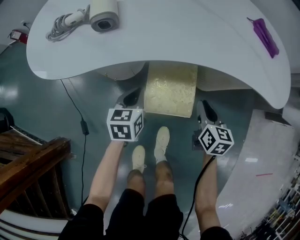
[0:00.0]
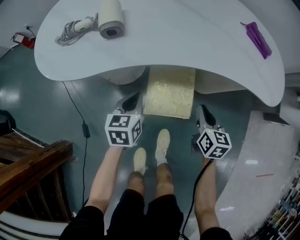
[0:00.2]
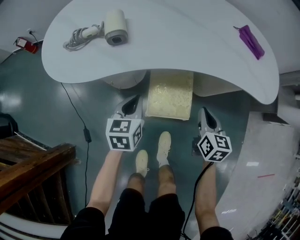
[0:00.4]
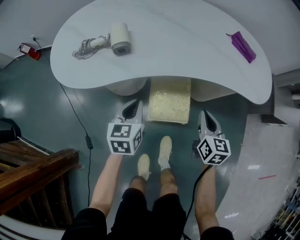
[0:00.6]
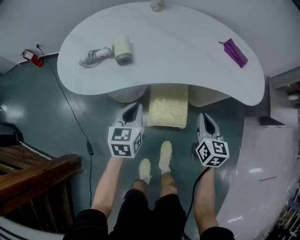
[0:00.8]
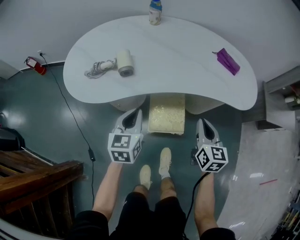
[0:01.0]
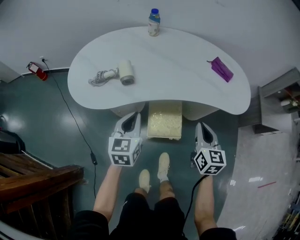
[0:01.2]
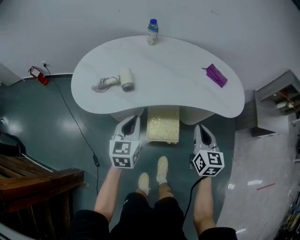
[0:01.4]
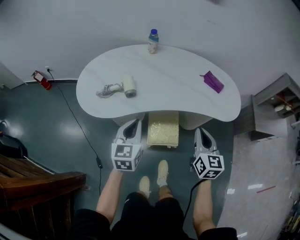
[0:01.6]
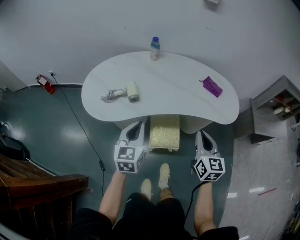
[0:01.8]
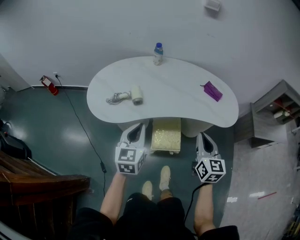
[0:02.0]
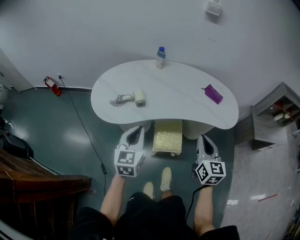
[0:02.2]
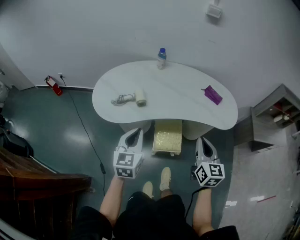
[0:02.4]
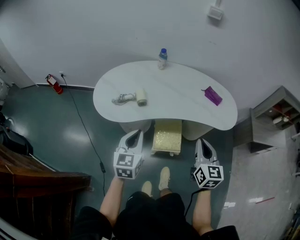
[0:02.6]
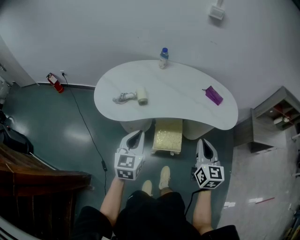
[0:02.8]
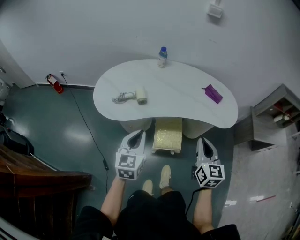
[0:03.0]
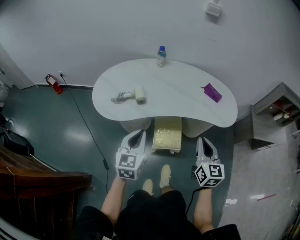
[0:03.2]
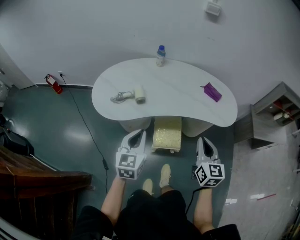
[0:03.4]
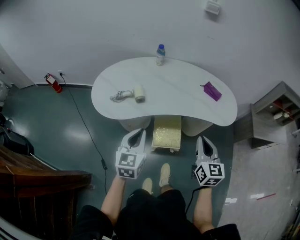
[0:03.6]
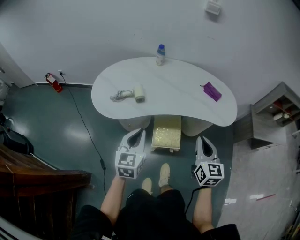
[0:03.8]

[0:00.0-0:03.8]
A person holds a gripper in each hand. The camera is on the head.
0:00.0 to 0:01.2: Both grippers travel together upward, about 30 cm.
0:01.2 to 0:02.6: The two grippers go about 20 cm upward and backward.
0:02.6 to 0:03.8: The grippers make only small movements.

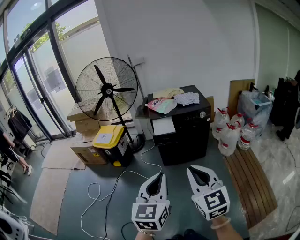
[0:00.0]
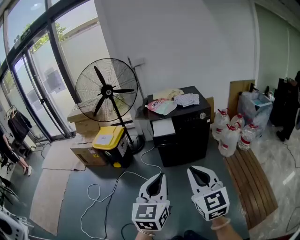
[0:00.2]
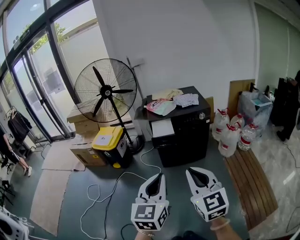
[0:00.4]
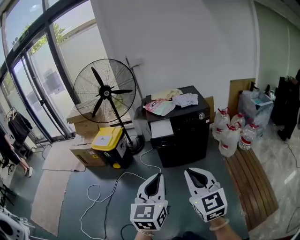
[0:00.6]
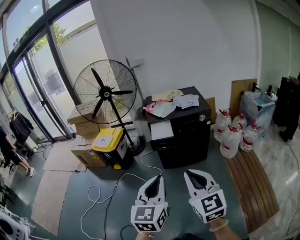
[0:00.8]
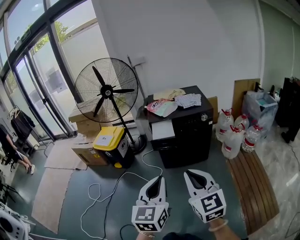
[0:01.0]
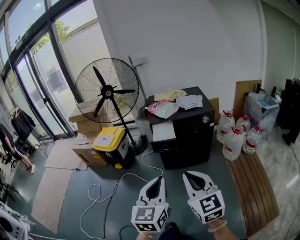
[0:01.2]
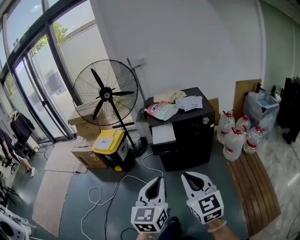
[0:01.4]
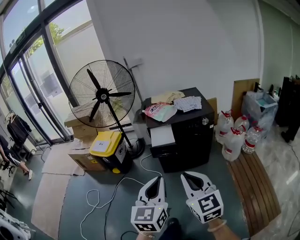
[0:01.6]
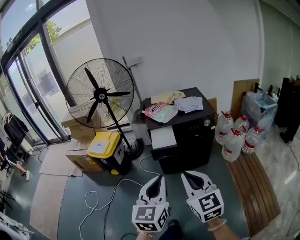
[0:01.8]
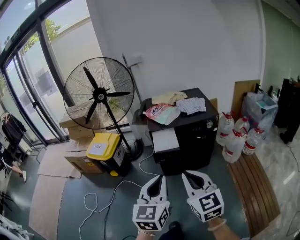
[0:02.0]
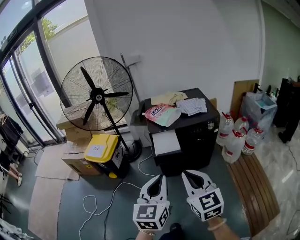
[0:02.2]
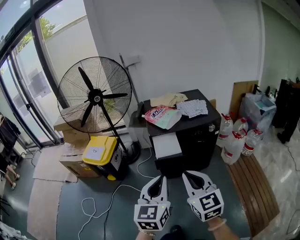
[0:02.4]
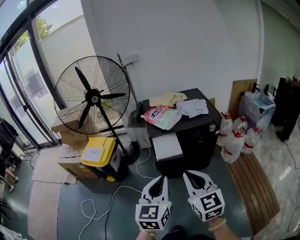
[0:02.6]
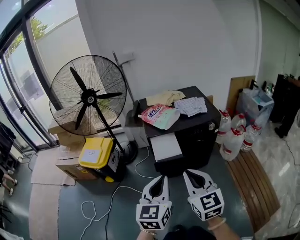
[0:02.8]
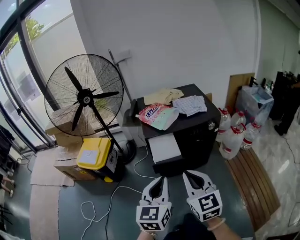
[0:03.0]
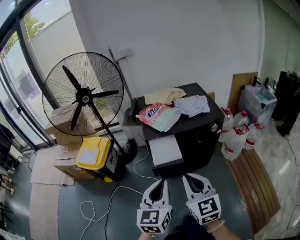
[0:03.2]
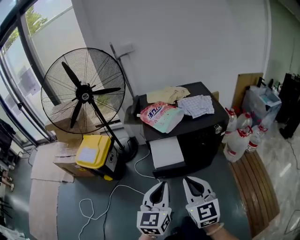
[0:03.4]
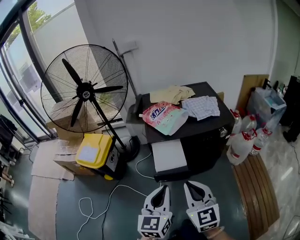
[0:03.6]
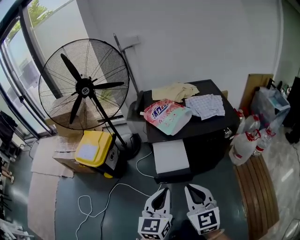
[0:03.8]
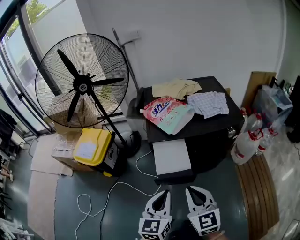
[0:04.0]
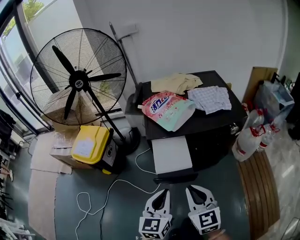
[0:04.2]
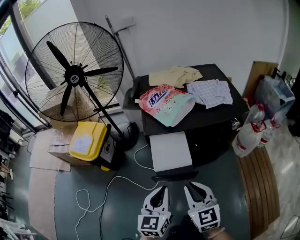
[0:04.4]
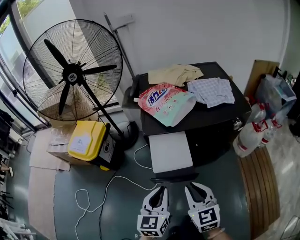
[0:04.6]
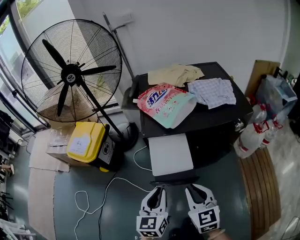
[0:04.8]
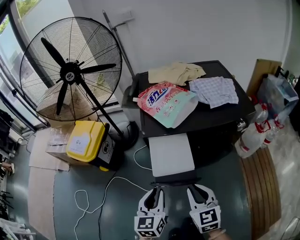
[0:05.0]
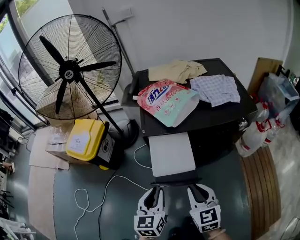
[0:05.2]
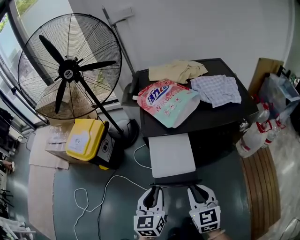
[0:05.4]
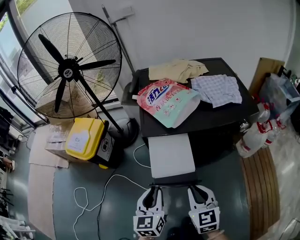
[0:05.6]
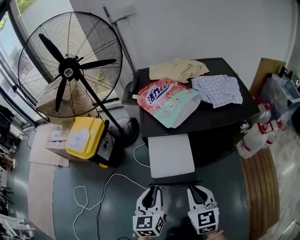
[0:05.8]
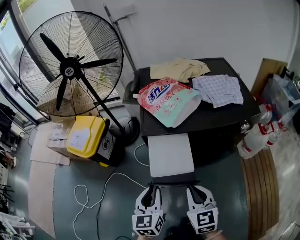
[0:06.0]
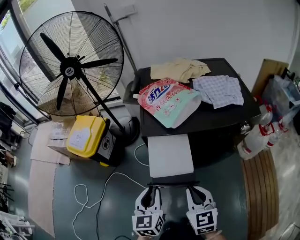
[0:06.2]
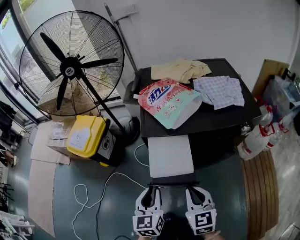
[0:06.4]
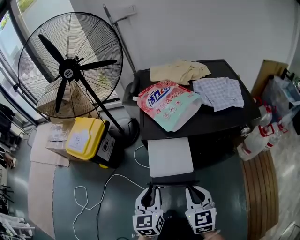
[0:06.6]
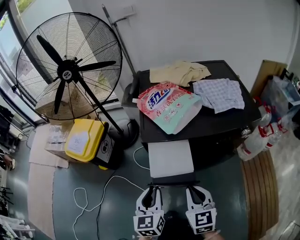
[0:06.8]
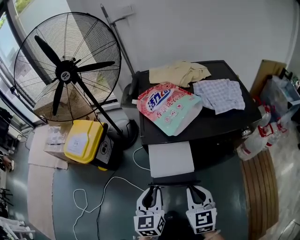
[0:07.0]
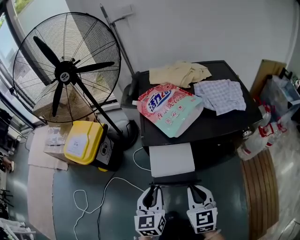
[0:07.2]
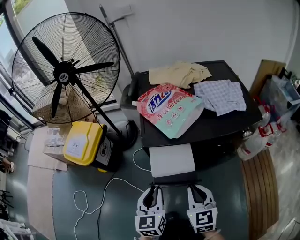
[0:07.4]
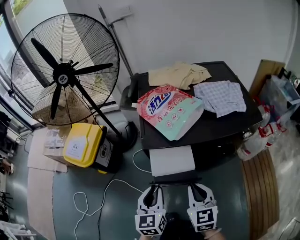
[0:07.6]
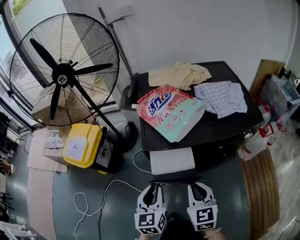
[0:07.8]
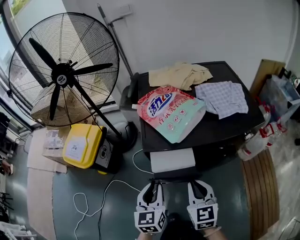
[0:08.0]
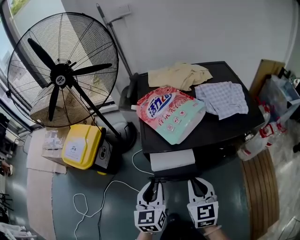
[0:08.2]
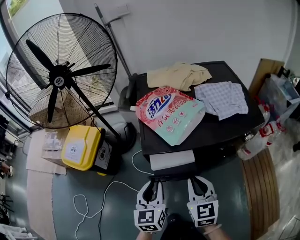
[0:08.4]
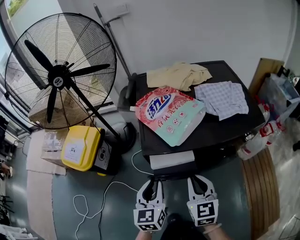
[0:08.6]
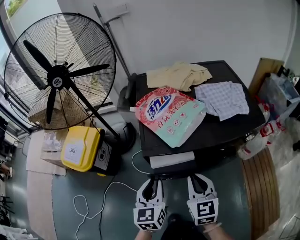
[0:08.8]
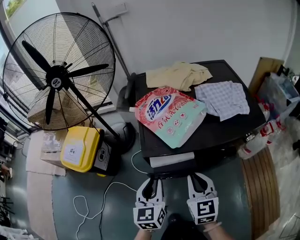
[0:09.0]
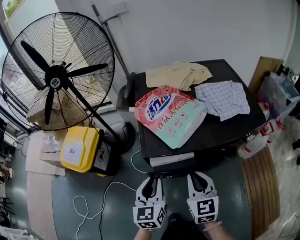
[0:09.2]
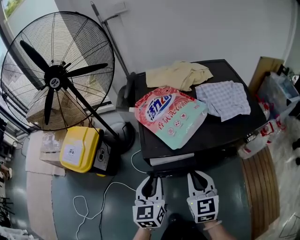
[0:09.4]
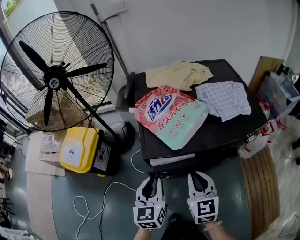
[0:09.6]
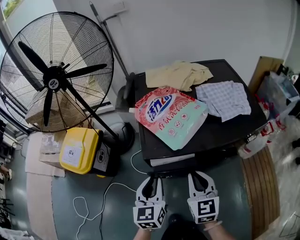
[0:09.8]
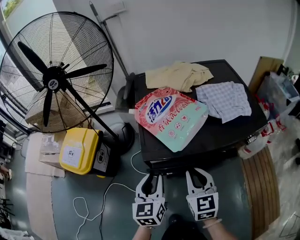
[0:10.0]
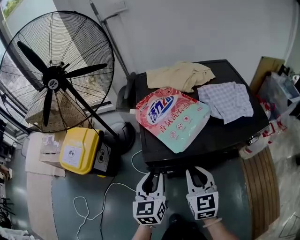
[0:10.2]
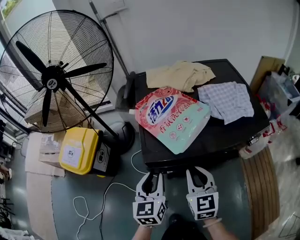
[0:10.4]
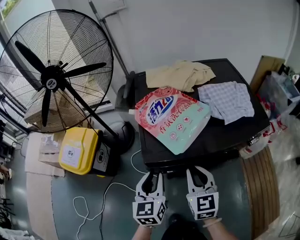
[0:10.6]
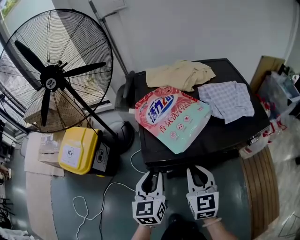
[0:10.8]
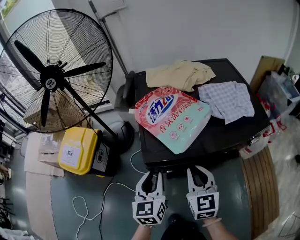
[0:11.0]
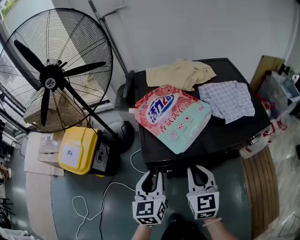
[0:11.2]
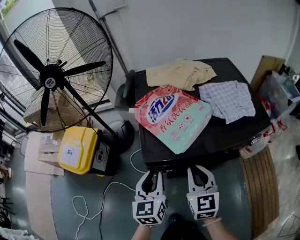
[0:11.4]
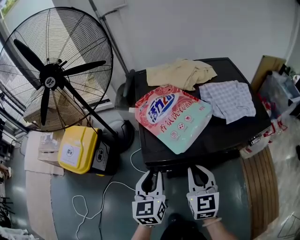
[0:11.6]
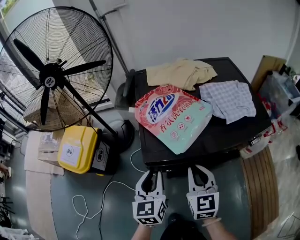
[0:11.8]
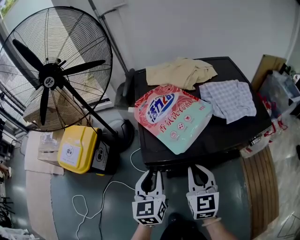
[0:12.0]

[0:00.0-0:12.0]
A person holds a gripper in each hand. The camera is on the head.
0:00.0 to 0:01.6: Both grippers travel together forward, about 10 cm.
0:01.6 to 0:03.0: The grippers both shift forward by approximately 20 cm.
0:03.0 to 0:04.4: Both grippers move downward and forward, some 25 cm.
0:04.4 to 0:06.0: Both grippers move downward, roughly 5 cm.
0:06.0 to 0:07.6: The grippers both shift forward by approximately 5 cm.
0:07.6 to 0:09.0: The two grippers go roughly 5 cm forward.
0:09.0 to 0:10.4: The grippers make only small movements.
0:10.4 to 0:12.0: Both grippers stay about where they are.

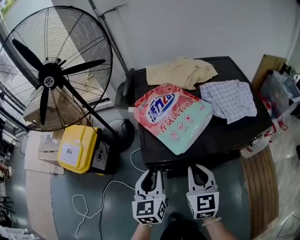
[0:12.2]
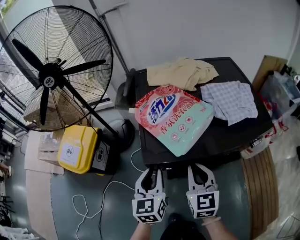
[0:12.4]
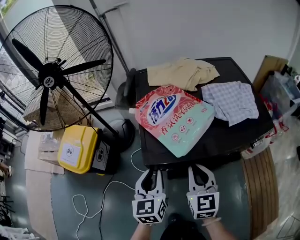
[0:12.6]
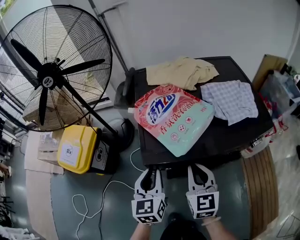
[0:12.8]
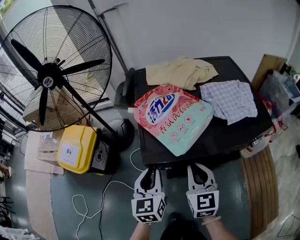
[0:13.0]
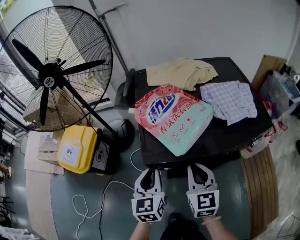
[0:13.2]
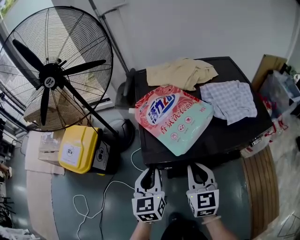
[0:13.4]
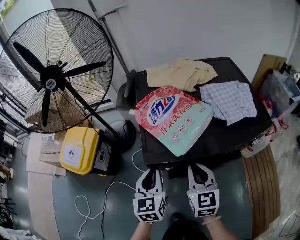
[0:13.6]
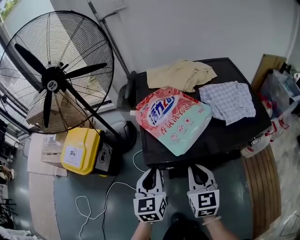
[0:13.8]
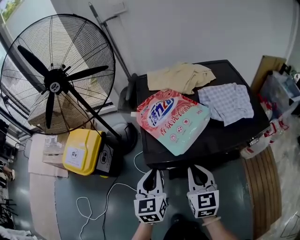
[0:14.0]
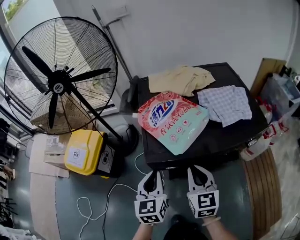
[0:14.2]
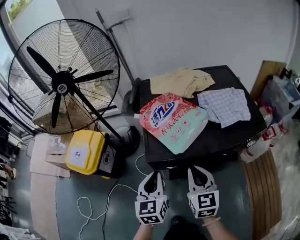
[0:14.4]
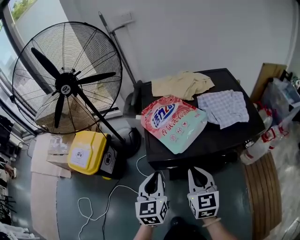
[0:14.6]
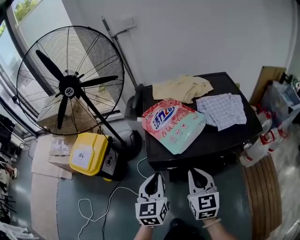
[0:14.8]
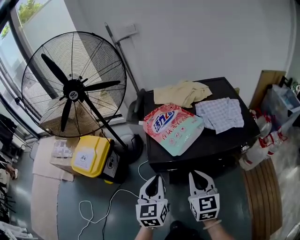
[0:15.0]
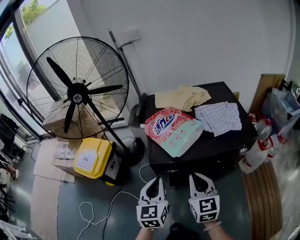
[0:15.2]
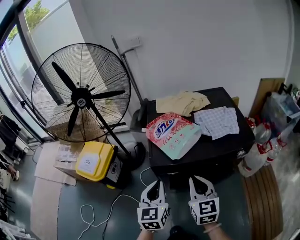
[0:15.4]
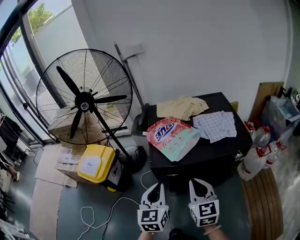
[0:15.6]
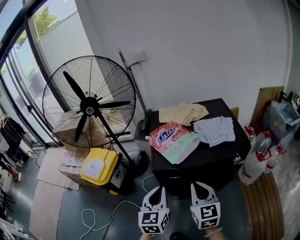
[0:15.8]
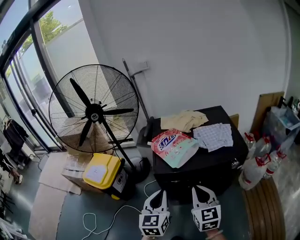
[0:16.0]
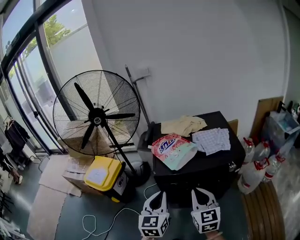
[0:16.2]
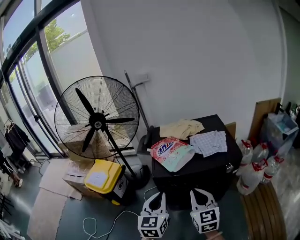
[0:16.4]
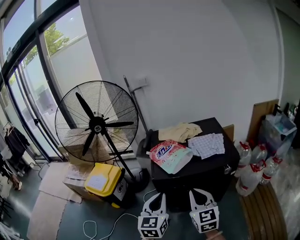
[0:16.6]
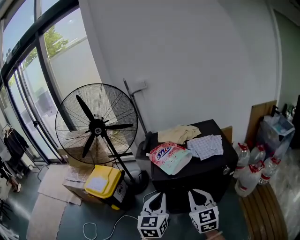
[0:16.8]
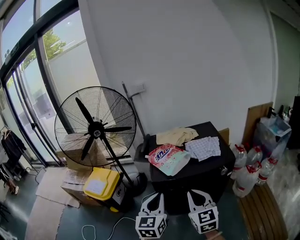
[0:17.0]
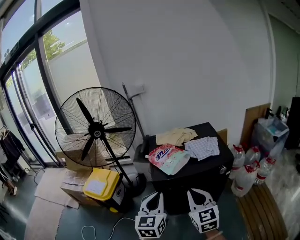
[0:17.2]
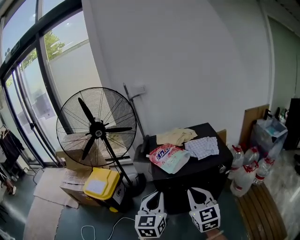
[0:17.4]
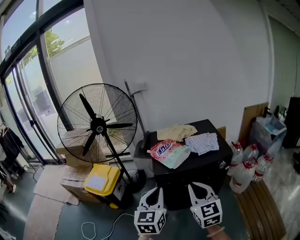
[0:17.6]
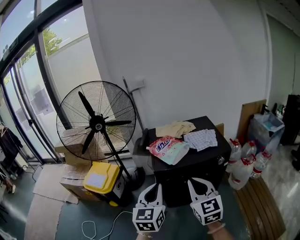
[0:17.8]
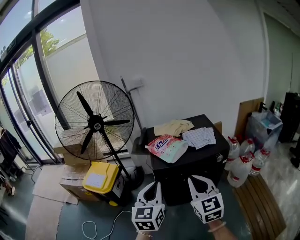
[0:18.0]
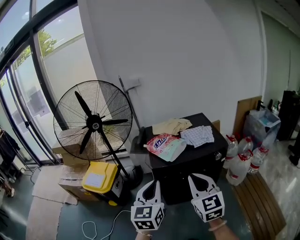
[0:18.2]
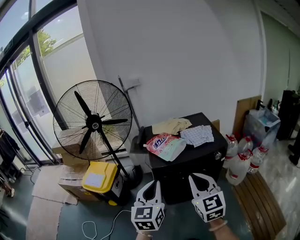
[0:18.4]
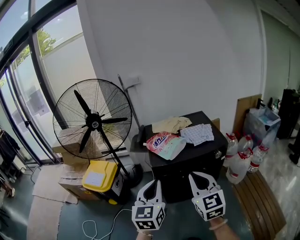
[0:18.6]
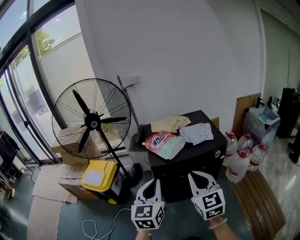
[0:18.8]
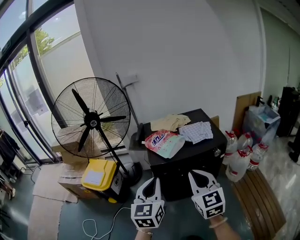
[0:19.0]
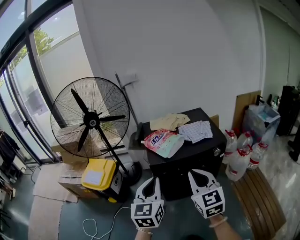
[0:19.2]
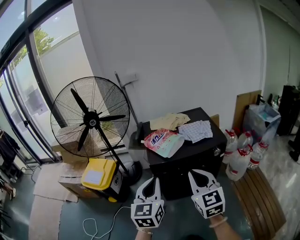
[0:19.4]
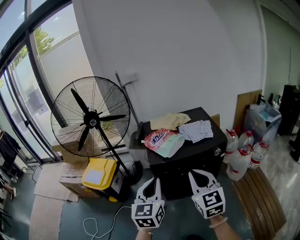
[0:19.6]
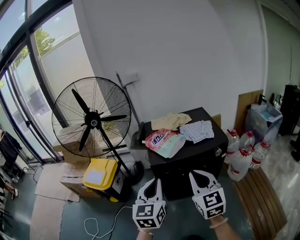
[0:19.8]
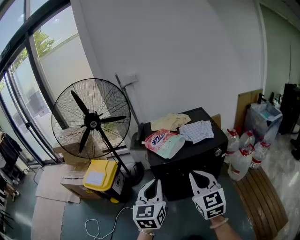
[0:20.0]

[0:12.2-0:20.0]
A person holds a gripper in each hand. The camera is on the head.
0:12.2 to 0:13.8: The two grippers keep their place.
0:13.8 to 0:15.4: The two grippers go approximately 15 cm upward and backward.
0:15.4 to 0:16.8: Both grippers travel together upward and backward, about 15 cm.
0:16.8 to 0:18.4: The left gripper is displaced backward and upward by approximately 10 cm; the right gripper goes approximately 10 cm upward and backward.
0:18.4 to 0:20.0: There are only small adjustments of the grippers.
